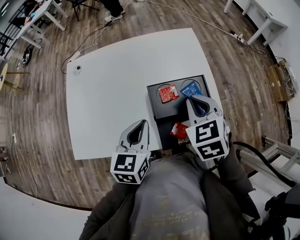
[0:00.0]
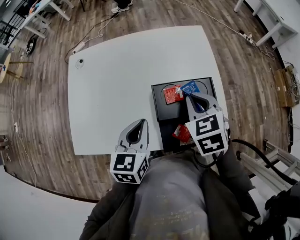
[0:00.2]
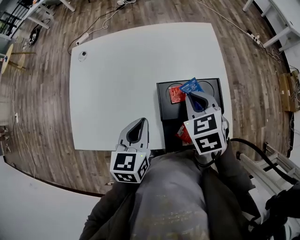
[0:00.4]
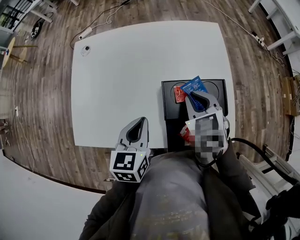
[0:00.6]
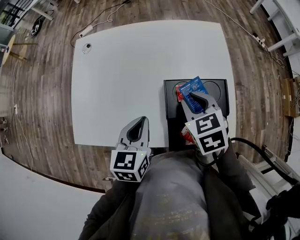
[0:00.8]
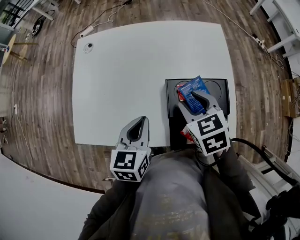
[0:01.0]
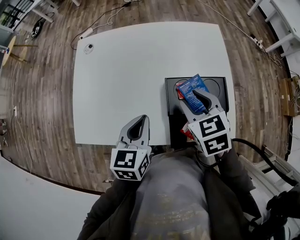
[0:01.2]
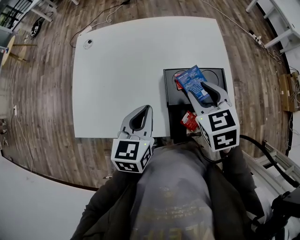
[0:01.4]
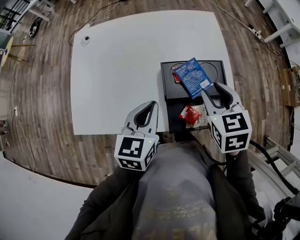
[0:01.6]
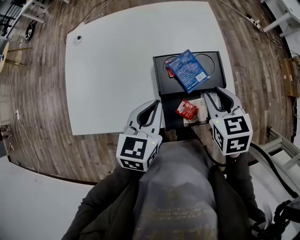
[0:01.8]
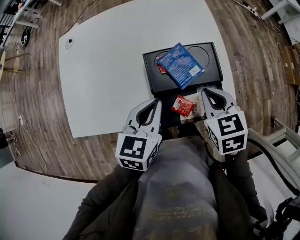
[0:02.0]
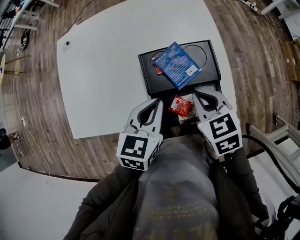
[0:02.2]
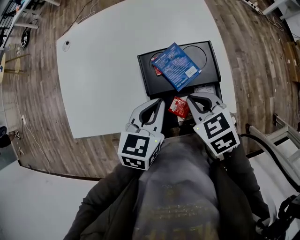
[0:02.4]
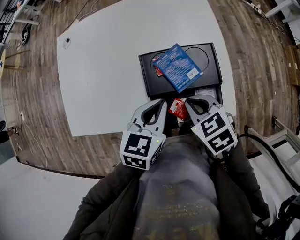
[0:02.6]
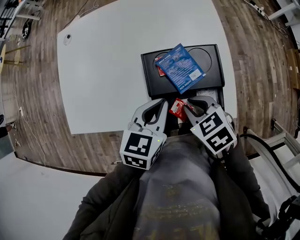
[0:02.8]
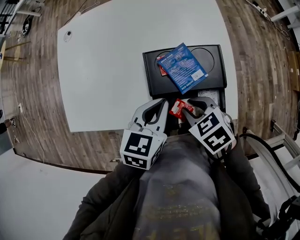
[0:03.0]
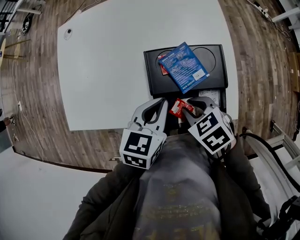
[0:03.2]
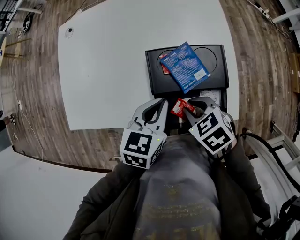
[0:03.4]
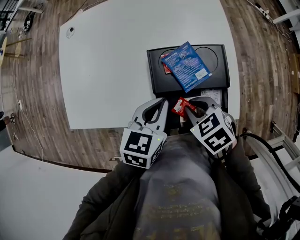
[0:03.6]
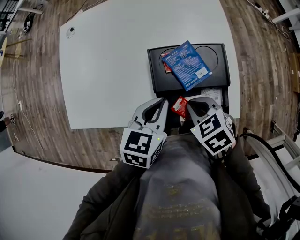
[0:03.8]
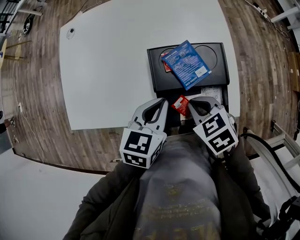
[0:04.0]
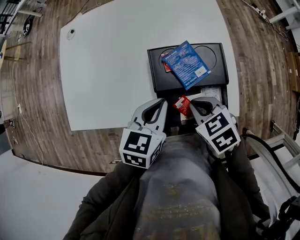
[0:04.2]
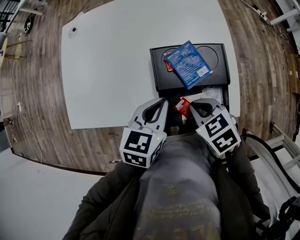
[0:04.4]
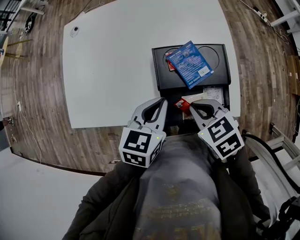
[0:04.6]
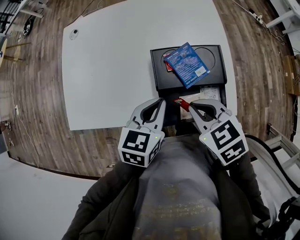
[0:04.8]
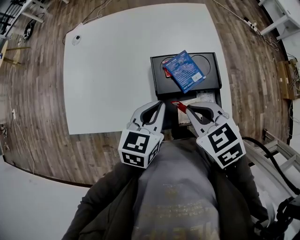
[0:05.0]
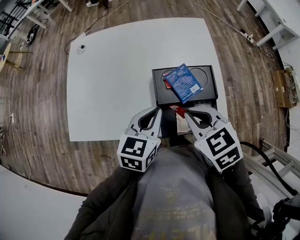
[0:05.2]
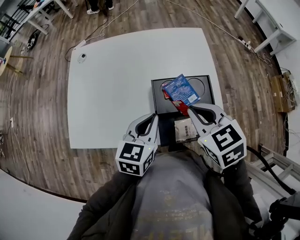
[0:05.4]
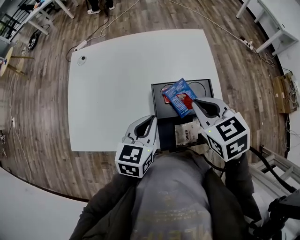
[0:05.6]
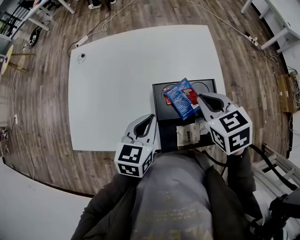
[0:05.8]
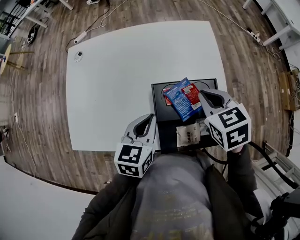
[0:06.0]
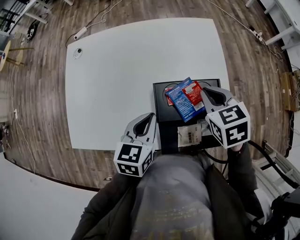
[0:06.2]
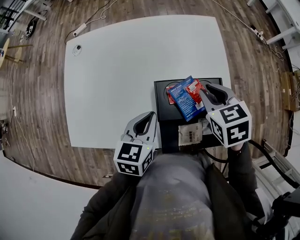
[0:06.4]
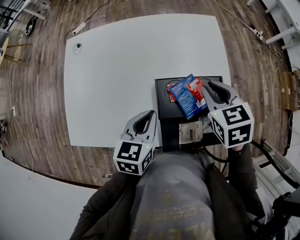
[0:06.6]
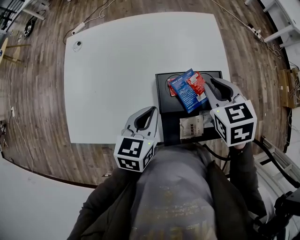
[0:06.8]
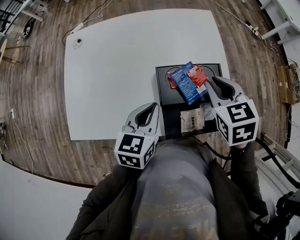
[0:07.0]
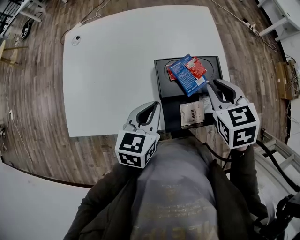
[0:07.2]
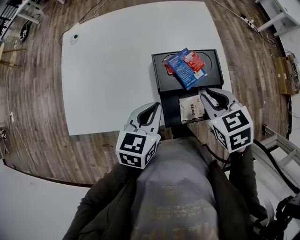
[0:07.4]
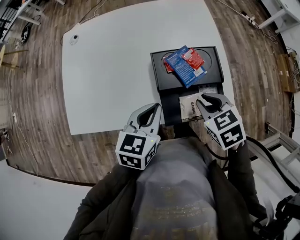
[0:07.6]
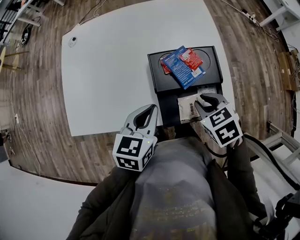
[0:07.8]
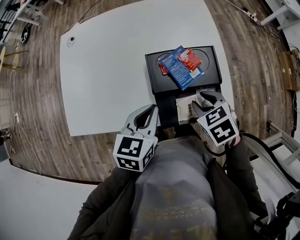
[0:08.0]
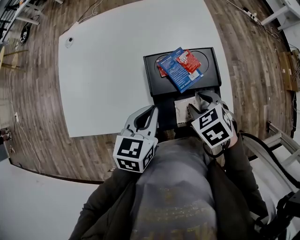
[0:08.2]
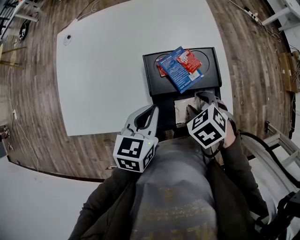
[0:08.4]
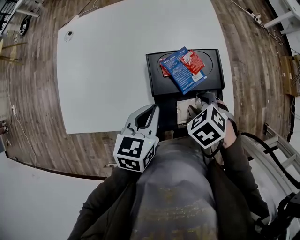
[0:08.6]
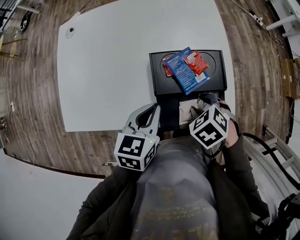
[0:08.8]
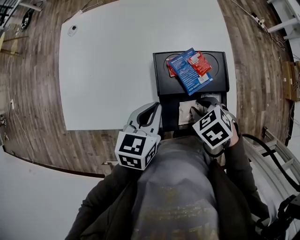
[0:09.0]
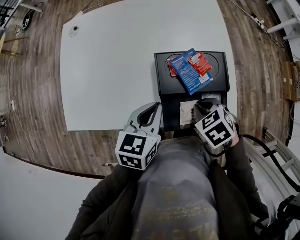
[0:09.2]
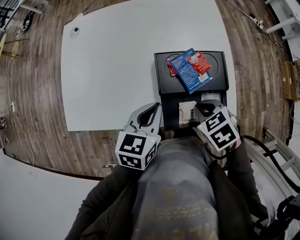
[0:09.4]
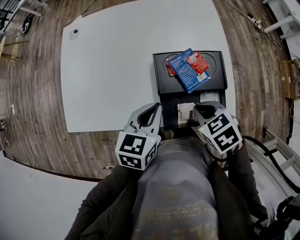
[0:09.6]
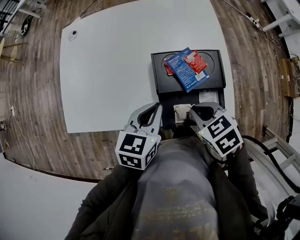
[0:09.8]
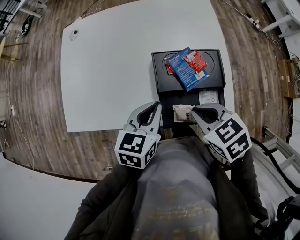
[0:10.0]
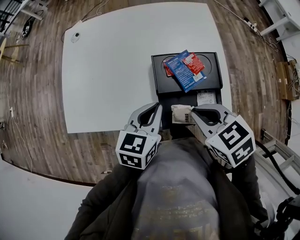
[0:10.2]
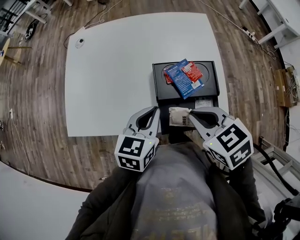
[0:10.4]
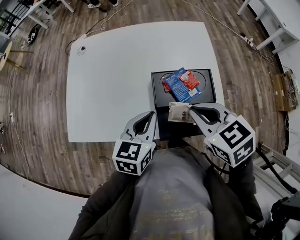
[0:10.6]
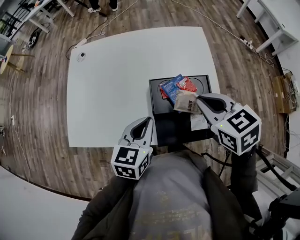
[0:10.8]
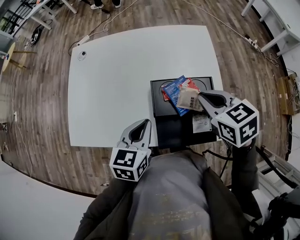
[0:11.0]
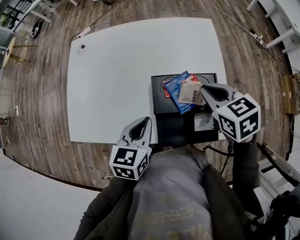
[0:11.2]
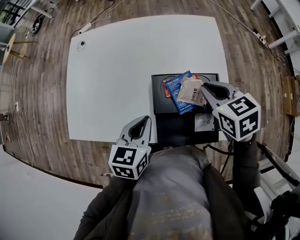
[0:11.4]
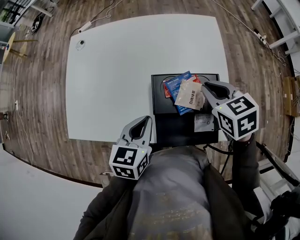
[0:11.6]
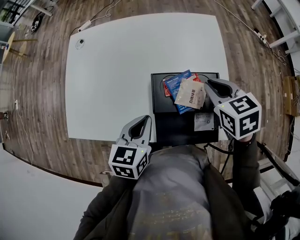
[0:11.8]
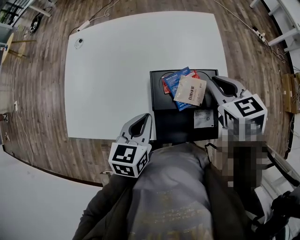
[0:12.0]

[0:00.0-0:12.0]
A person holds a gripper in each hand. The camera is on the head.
0:00.0 to 0:01.6: The right gripper reaches some 5 cm to the left, then returns, and opens up.
0:01.6 to 0:03.0: The left gripper is displaced to the right and downward by some 10 cm, while the right gripper goes some 15 cm downward and backward, rotates some 40 degrees, and closes, then reopens.
0:03.0 to 0:04.4: The right gripper closes its fingers.
0:04.4 to 0:06.0: The right gripper heads forward and upward, covering approximately 15 cm, and changes its angle by roughly 20 degrees. The left gripper travels forward by some 5 cm.
0:06.0 to 0:07.6: The right gripper is displaced backward and downward by about 15 cm. The left gripper moves backward, some 5 cm.
0:07.6 to 0:09.0: The right gripper travels downward by roughly 5 cm, and rotates some 20 degrees.
0:09.0 to 0:10.4: The right gripper goes some 15 cm upward, rotates roughly 20 degrees, and closes.
0:10.4 to 0:12.0: The right gripper heads forward and to the right, covering roughly 15 cm.

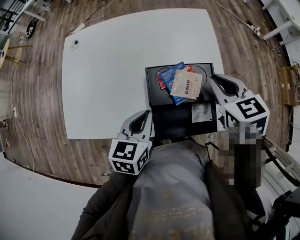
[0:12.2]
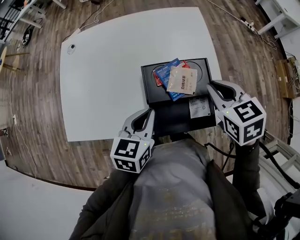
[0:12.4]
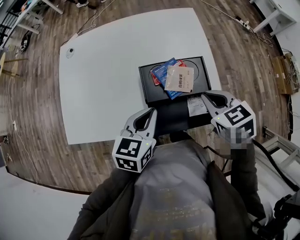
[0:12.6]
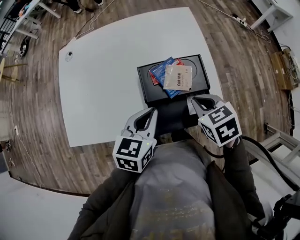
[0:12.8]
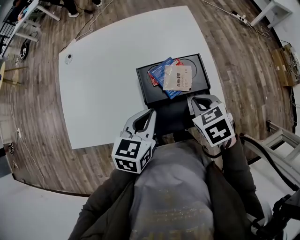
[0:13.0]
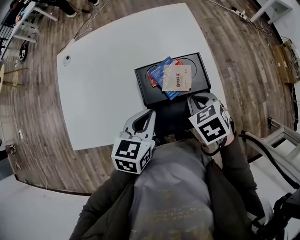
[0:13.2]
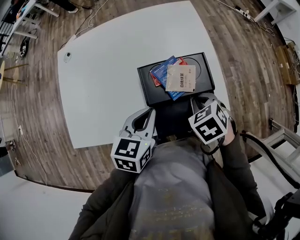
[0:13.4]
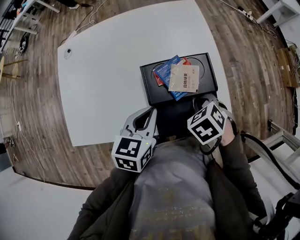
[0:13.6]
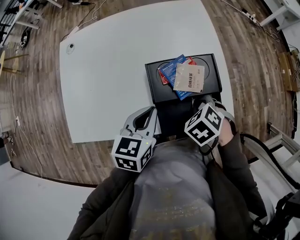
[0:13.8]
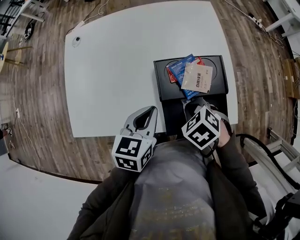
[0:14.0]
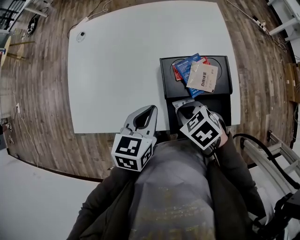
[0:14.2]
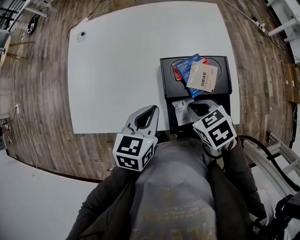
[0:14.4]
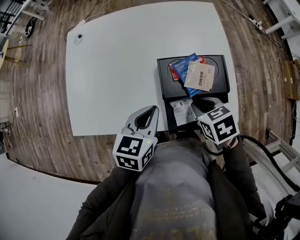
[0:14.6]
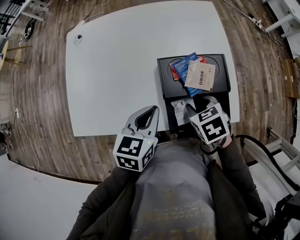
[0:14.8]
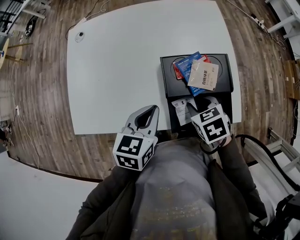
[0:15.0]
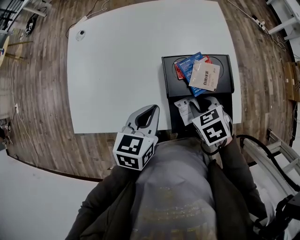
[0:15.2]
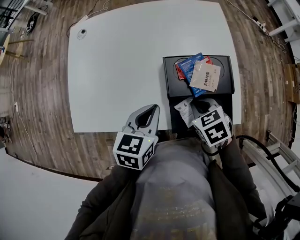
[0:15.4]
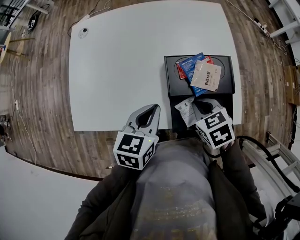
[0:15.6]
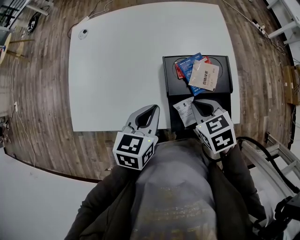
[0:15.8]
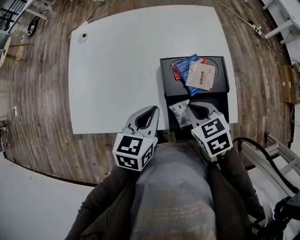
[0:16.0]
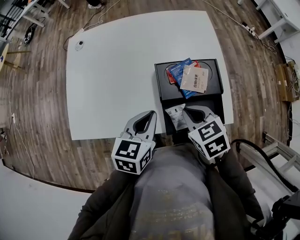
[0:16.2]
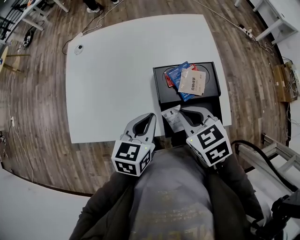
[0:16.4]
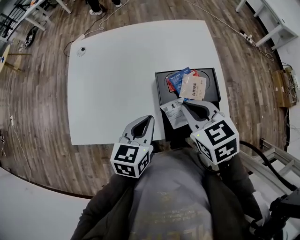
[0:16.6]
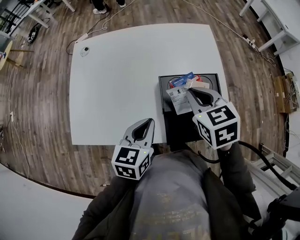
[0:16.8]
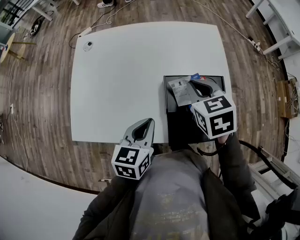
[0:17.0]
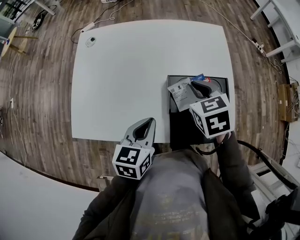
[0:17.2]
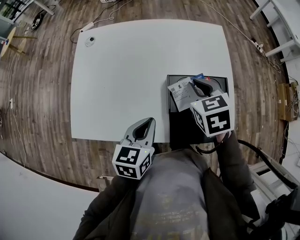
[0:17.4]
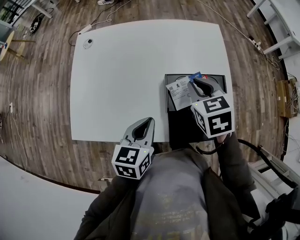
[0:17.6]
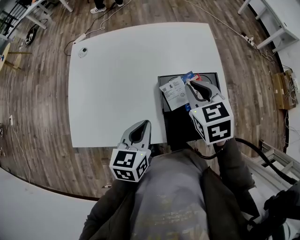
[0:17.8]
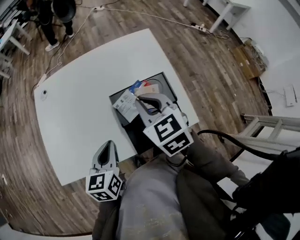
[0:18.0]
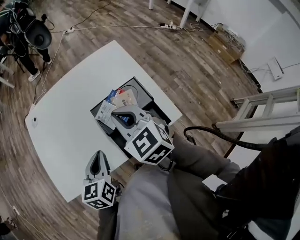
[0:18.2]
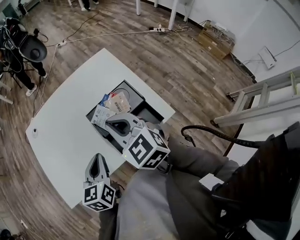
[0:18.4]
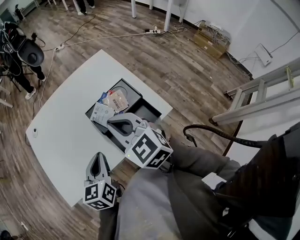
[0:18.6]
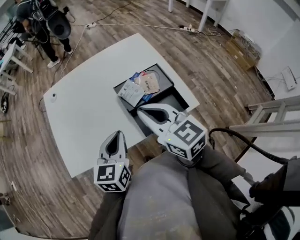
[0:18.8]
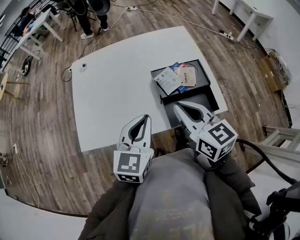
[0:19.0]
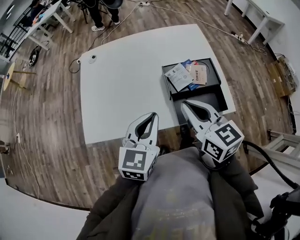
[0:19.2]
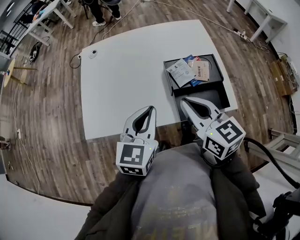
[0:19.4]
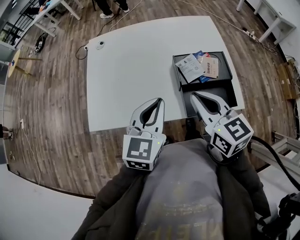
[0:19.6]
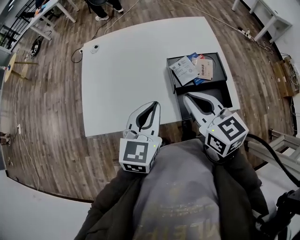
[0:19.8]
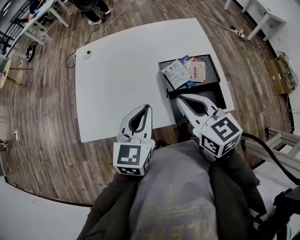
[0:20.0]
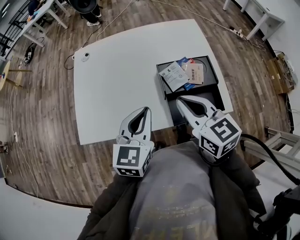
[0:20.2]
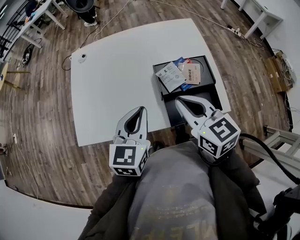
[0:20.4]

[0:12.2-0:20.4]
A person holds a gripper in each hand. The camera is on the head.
0:12.2 to 0:13.8: The right gripper goes approximately 15 cm downward, and angles its fingers downward, by approximately 30 degrees.
0:13.8 to 0:15.4: The right gripper changes its angle by approximately 20 degrees, and opens, then closes again.
0:15.4 to 0:17.2: The right gripper is displaced forward and upward by roughly 15 cm.
0:17.2 to 0:18.8: The right gripper moves backward and upward, roughly 20 cm, and angles its fingers upward, by some 30 degrees, while the left gripper goes about 5 cm upward.
0:18.8 to 0:20.4: There are only small adjustments of the grippers.

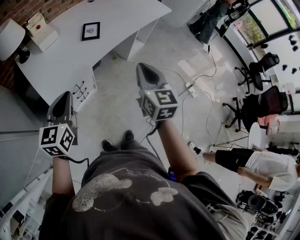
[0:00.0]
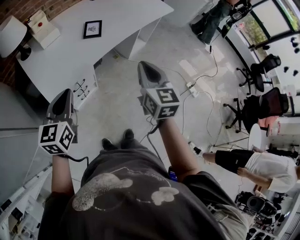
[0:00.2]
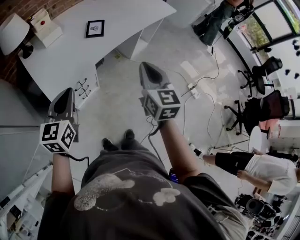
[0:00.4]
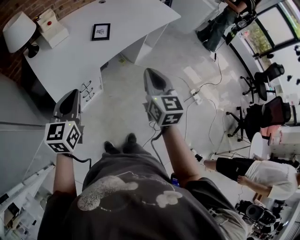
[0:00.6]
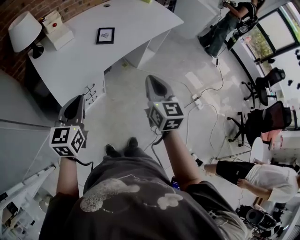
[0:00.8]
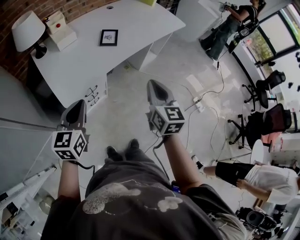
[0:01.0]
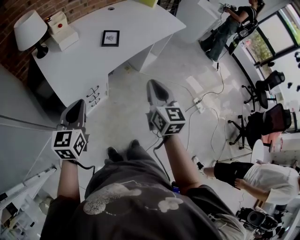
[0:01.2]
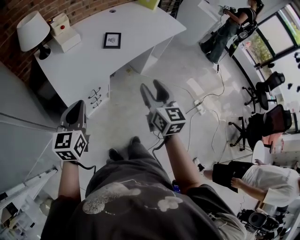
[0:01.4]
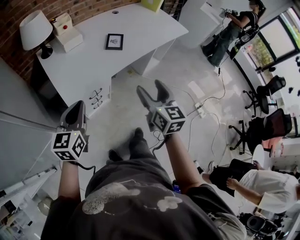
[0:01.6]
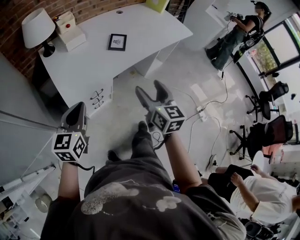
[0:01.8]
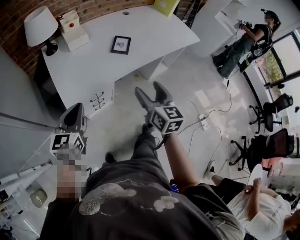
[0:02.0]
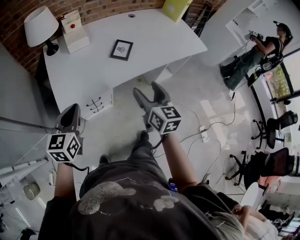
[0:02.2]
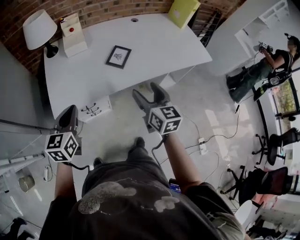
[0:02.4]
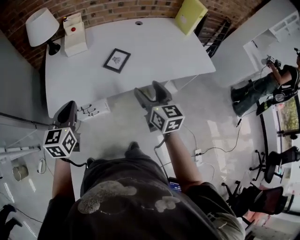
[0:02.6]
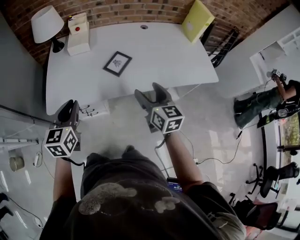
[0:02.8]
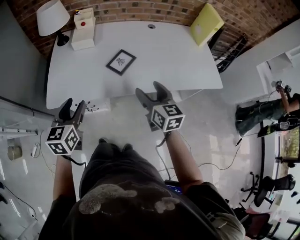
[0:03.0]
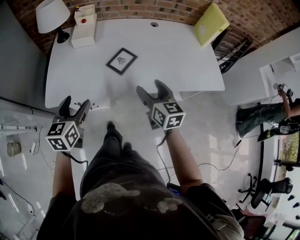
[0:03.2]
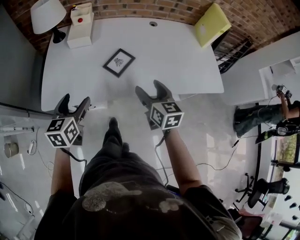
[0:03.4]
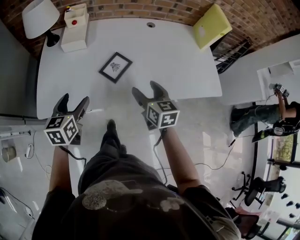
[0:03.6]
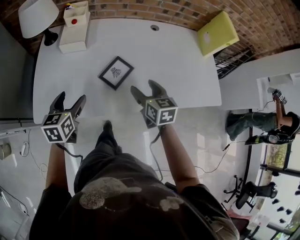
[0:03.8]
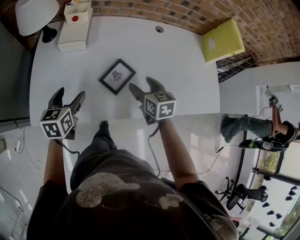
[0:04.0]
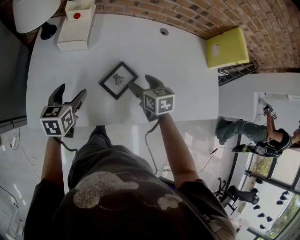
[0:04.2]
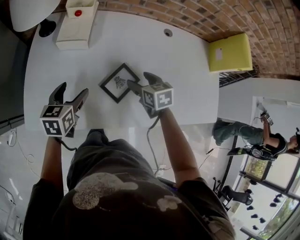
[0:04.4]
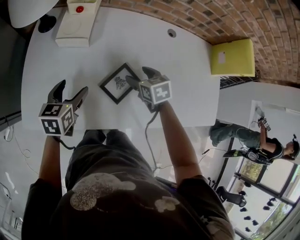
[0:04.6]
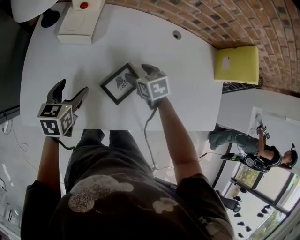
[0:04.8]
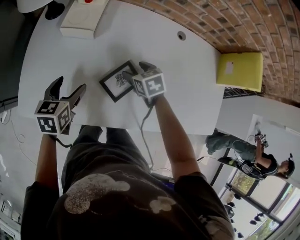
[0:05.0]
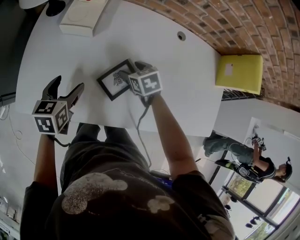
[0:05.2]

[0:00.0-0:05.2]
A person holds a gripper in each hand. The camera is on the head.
0:00.0 to 0:01.8: The right gripper heads to the left, covering approximately 5 cm, and opens.
0:01.8 to 0:03.4: The left gripper ends up approximately 25 cm from where it was, turns by roughly 40 degrees, and opens up; the right gripper moves roughly 35 cm, and turns by approximately 40 degrees.
0:03.4 to 0:05.2: The right gripper moves forward and downward, about 30 cm, and points its fingers about 40 degrees further downward, while the left gripper travels forward and downward by some 20 cm.
